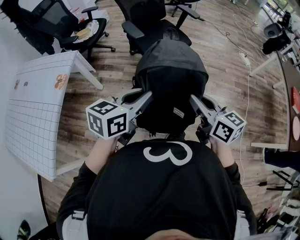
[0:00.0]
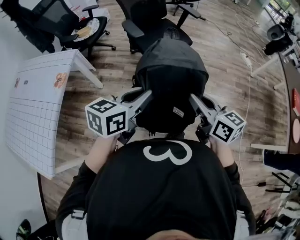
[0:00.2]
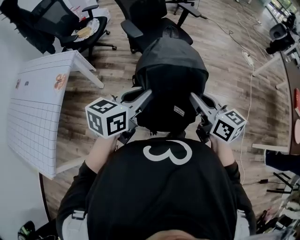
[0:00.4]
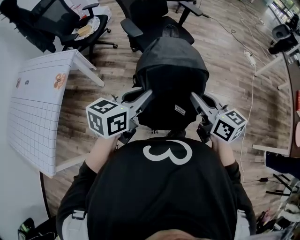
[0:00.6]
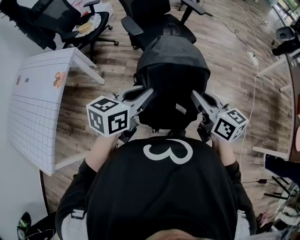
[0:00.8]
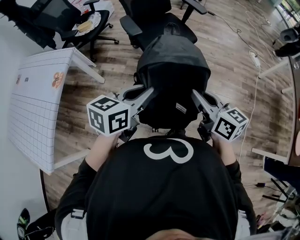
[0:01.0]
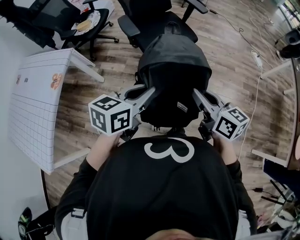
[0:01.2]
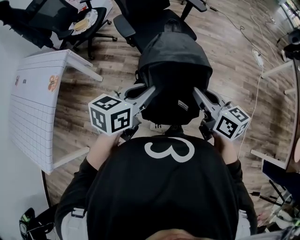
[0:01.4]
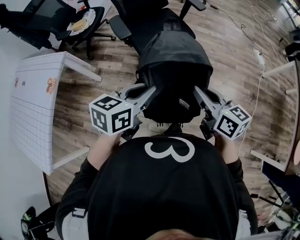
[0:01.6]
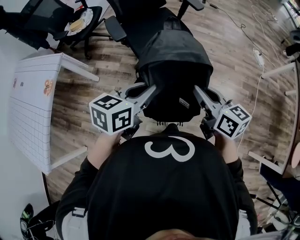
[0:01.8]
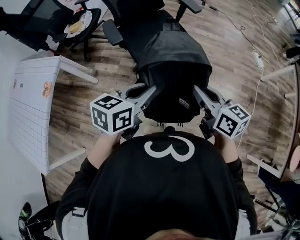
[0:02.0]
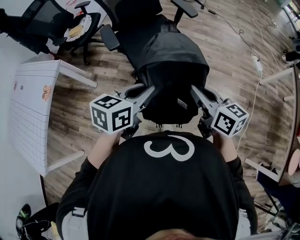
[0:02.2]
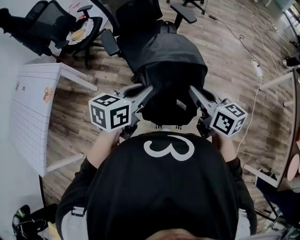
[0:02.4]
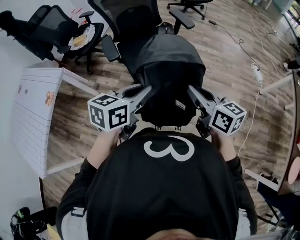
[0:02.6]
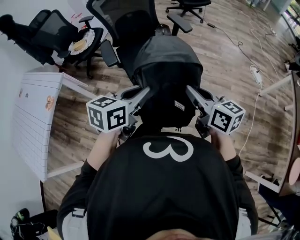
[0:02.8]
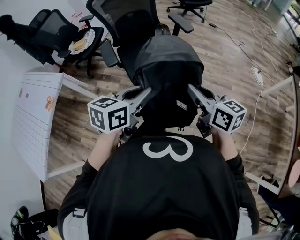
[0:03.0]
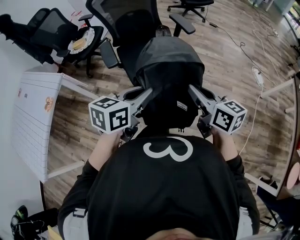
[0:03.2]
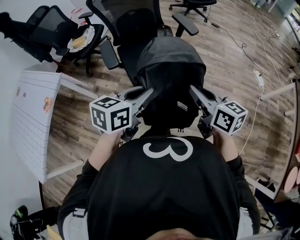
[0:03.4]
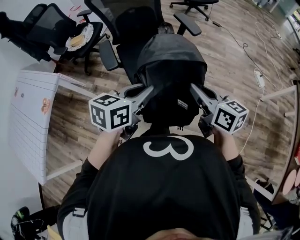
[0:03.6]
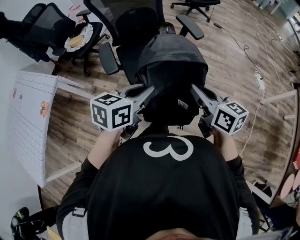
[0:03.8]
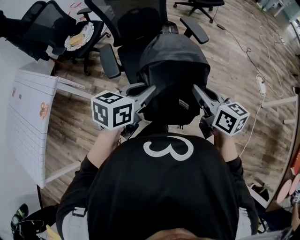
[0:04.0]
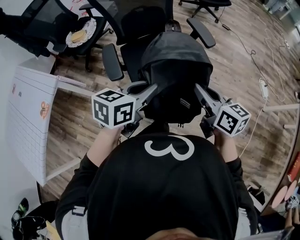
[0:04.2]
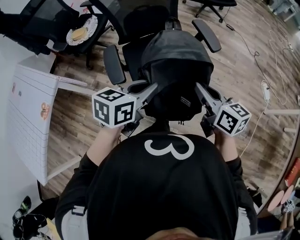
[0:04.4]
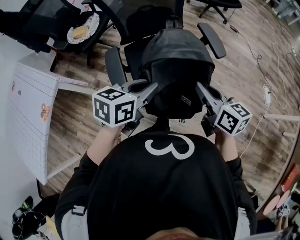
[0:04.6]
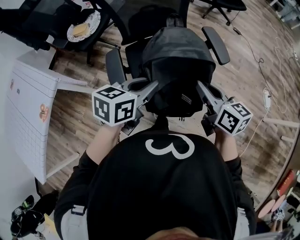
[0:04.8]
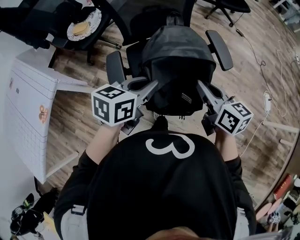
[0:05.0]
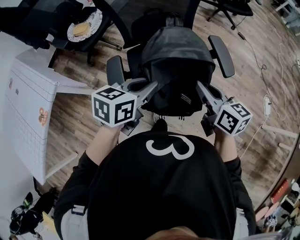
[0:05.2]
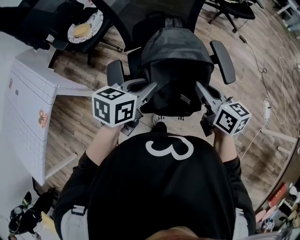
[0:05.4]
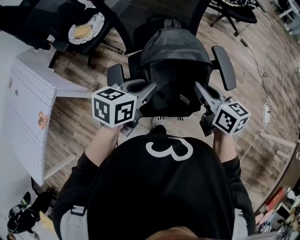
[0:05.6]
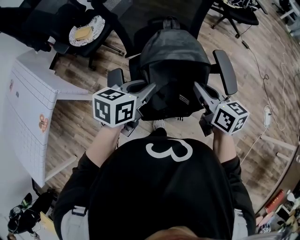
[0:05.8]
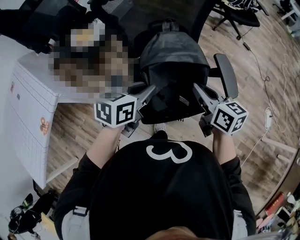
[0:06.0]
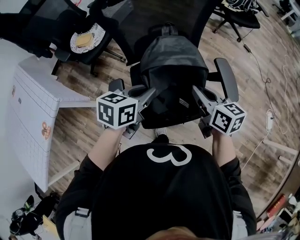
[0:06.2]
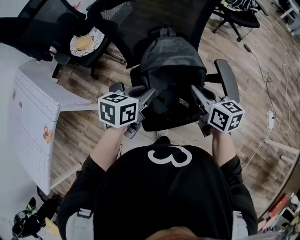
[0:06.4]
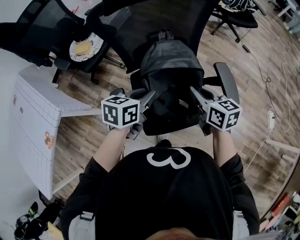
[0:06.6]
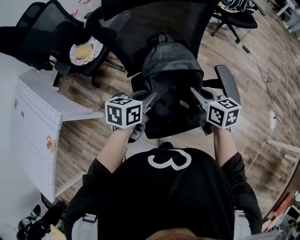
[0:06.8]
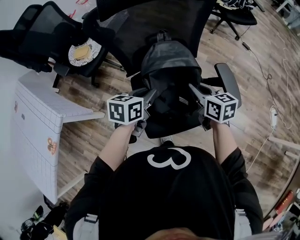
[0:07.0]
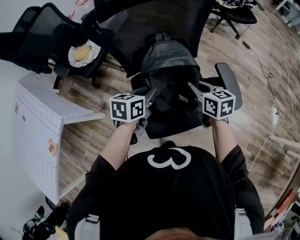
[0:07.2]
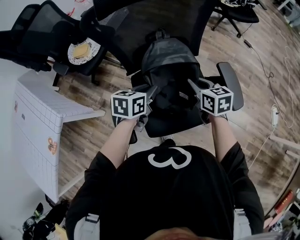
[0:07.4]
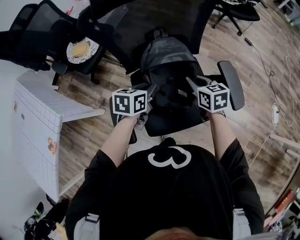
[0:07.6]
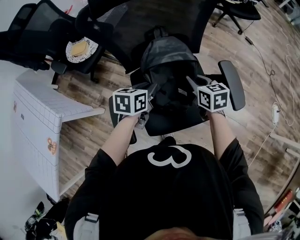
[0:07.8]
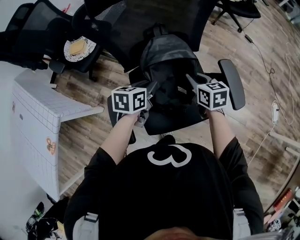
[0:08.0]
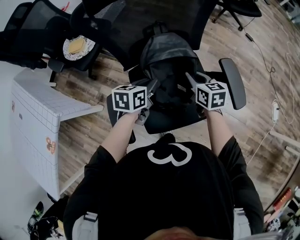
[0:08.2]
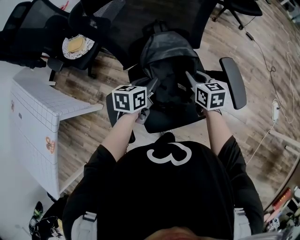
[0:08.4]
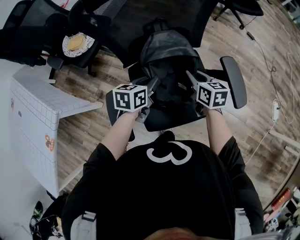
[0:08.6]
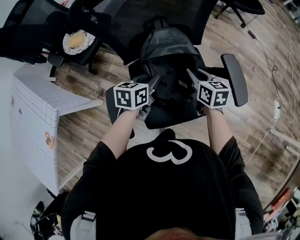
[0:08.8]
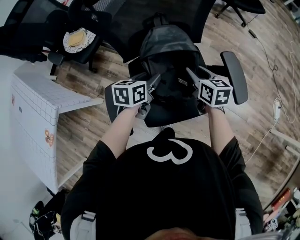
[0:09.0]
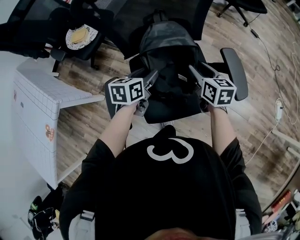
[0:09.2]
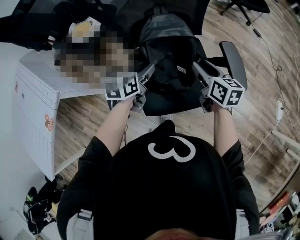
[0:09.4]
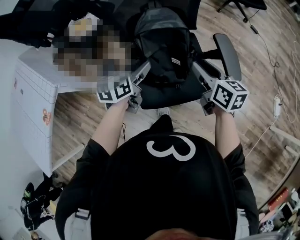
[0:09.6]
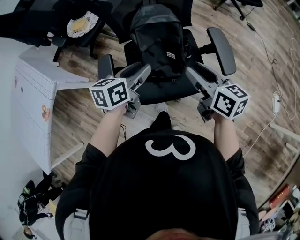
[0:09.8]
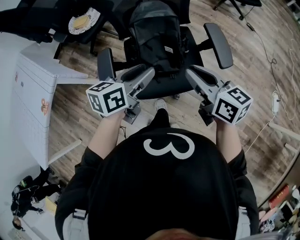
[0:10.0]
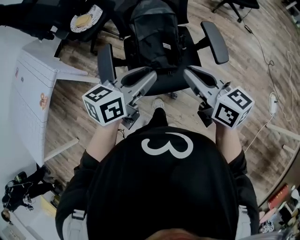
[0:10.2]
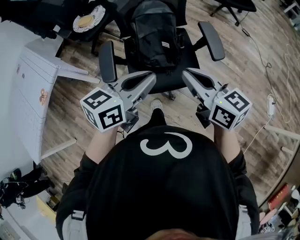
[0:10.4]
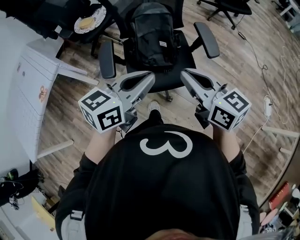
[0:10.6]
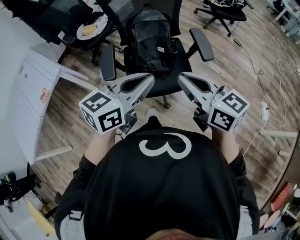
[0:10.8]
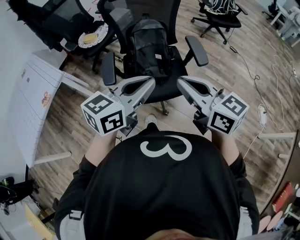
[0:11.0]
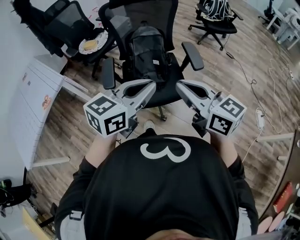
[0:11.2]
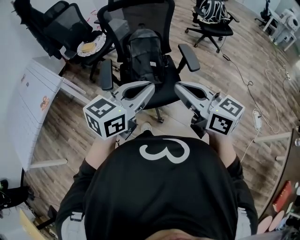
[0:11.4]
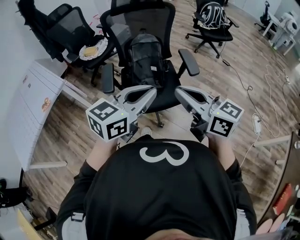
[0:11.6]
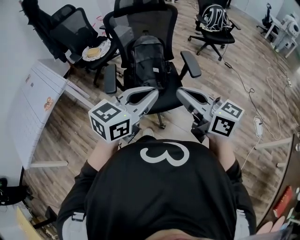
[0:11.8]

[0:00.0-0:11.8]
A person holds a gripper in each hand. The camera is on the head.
0:00.0 to 0:01.4: Both grippers travel together forward and to the right, about 15 cm.
0:01.4 to 0:03.0: Both grippers move forward and to the right, roughly 20 cm.
0:03.0 to 0:04.4: Both grippers travel together forward, approximately 25 cm.
0:04.4 to 0:06.0: Both grippers move forward, roughly 25 cm.
0:06.0 to 0:07.4: The two grippers go some 15 cm forward and downward.
0:07.4 to 0:08.8: The left gripper shifts roughly 5 cm downward. The right gripper shifts by approximately 5 cm.
0:08.8 to 0:10.4: Both grippers move backward and upward, approximately 35 cm. The right gripper changes its angle by some 30 degrees, and opens, then closes once more. Meanwhile the left gripper rotates approximately 20 degrees, and opens, then closes again.
0:10.4 to 0:11.8: The left gripper moves backward, upward and to the right, about 20 cm; the right gripper moves backward and upward, some 20 cm.

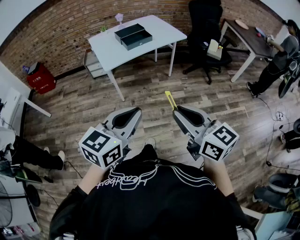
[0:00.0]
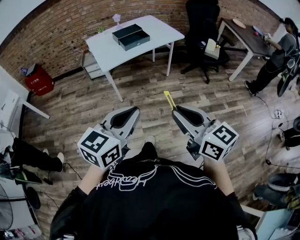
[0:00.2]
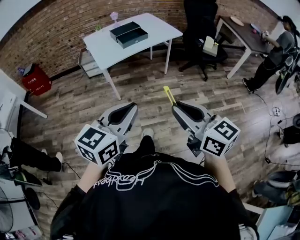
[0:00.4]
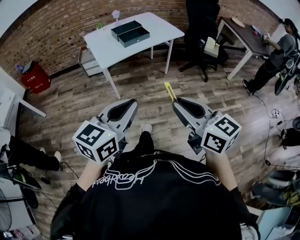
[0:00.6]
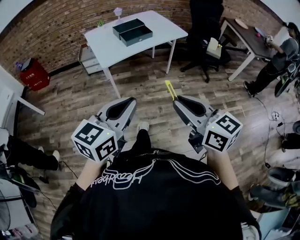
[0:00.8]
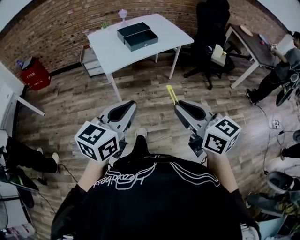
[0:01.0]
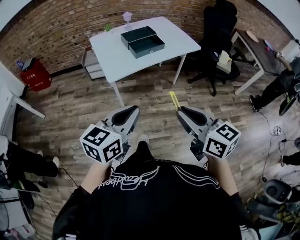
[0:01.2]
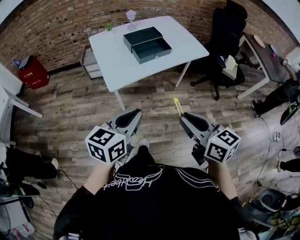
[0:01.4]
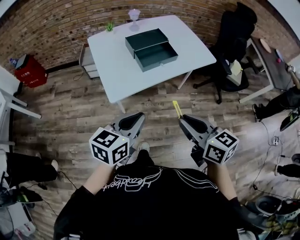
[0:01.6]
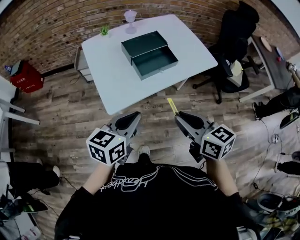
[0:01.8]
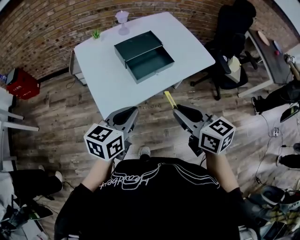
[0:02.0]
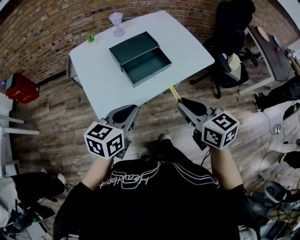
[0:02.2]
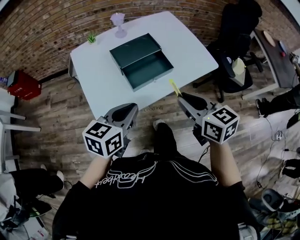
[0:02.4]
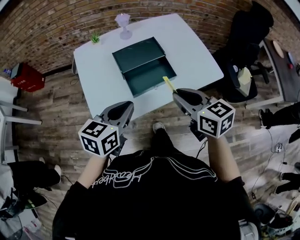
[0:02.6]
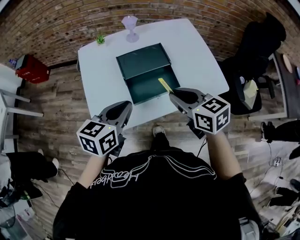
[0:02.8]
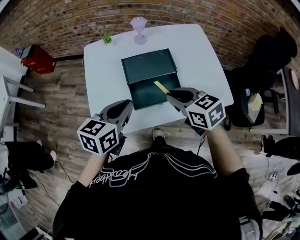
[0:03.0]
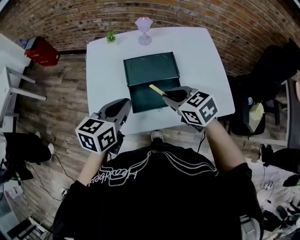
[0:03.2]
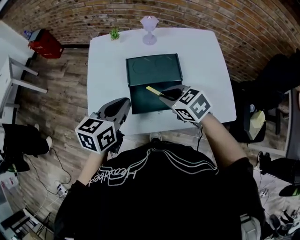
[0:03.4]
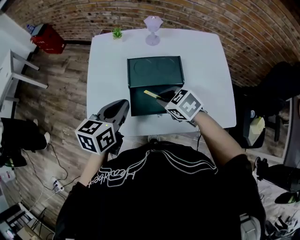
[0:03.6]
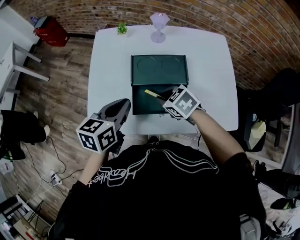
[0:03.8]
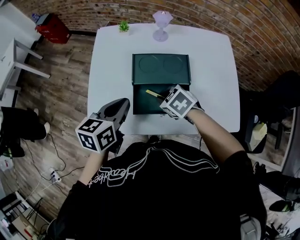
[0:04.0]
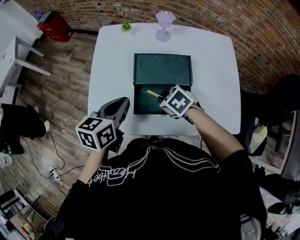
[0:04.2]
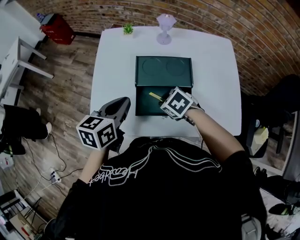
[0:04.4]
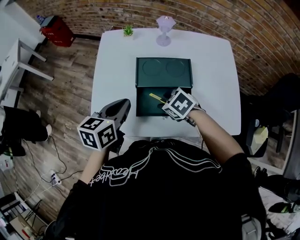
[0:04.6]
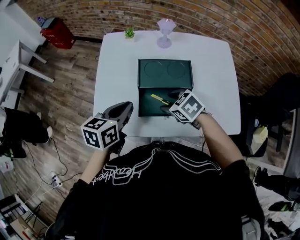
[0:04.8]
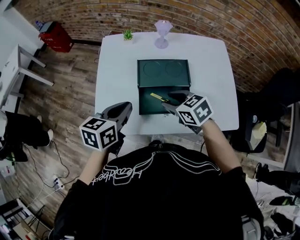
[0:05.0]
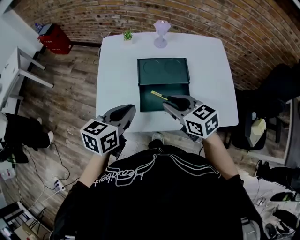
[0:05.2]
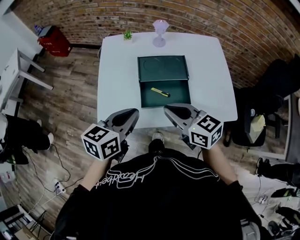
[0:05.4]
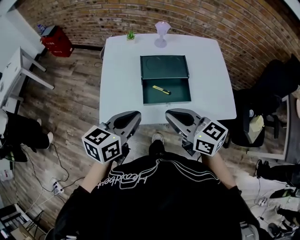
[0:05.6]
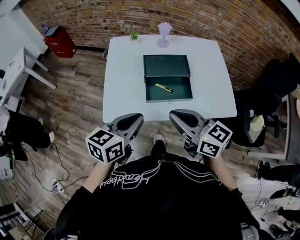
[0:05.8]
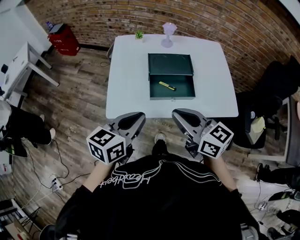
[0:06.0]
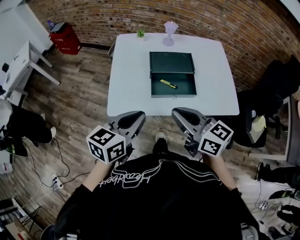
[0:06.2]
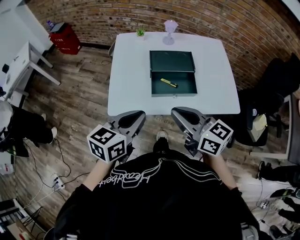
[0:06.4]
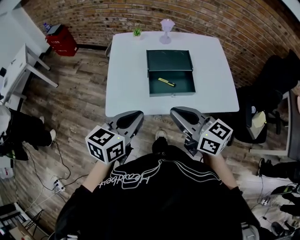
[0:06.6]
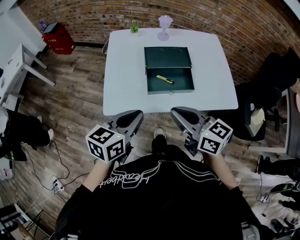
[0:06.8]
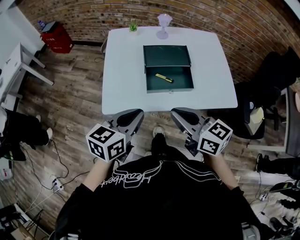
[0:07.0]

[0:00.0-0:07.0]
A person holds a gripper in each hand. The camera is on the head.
0:00.0 to 0:01.4: Both grippers travel together forward, some 25 cm.
0:01.4 to 0:02.8: Both grippers move forward, some 35 cm. The right gripper rotates roughly 20 degrees.
0:02.8 to 0:04.2: The left gripper shifts by approximately 10 cm, and swivels some 30 degrees; the right gripper moves downward, approximately 20 cm, and tips its fingers downward by roughly 30 degrees.
0:04.2 to 0:05.6: The left gripper heads backward and upward, covering some 15 cm, while the right gripper heads upward and backward, covering approximately 25 cm, angles its fingers upward, by some 50 degrees, and opens and closes again.
0:05.6 to 0:07.0: The left gripper moves some 5 cm; the right gripper heads backward, covering roughly 5 cm.

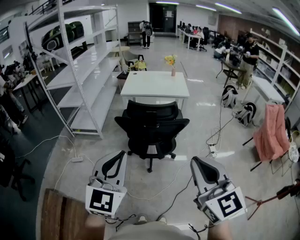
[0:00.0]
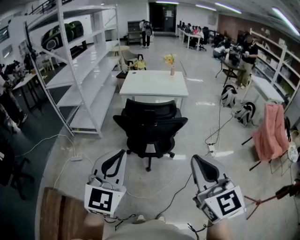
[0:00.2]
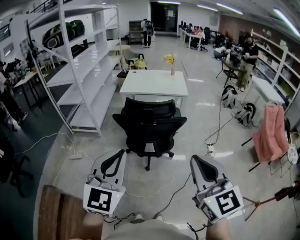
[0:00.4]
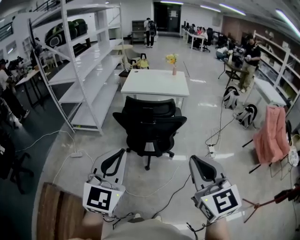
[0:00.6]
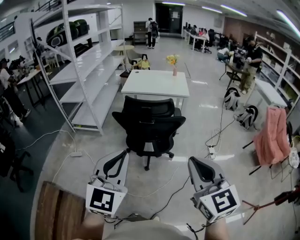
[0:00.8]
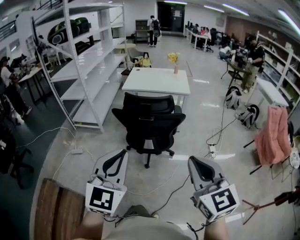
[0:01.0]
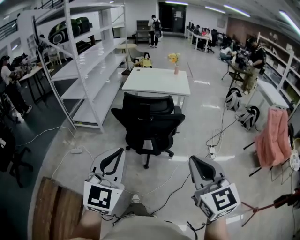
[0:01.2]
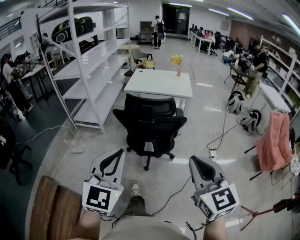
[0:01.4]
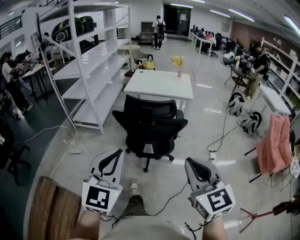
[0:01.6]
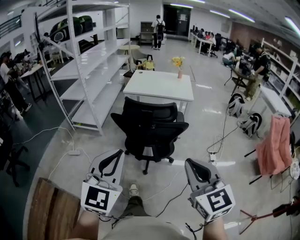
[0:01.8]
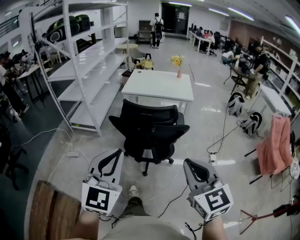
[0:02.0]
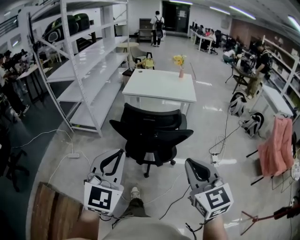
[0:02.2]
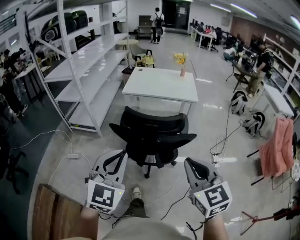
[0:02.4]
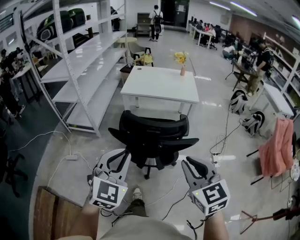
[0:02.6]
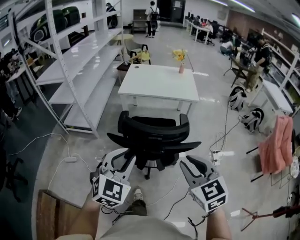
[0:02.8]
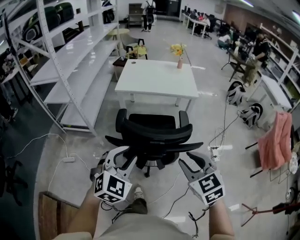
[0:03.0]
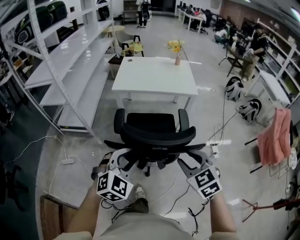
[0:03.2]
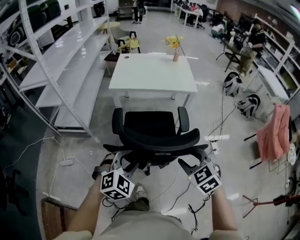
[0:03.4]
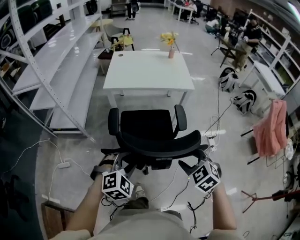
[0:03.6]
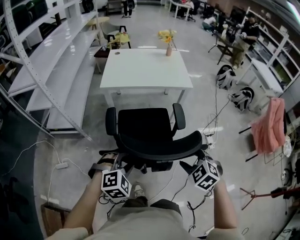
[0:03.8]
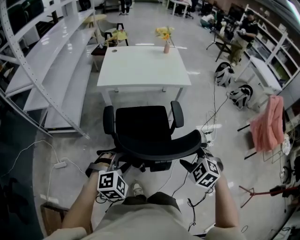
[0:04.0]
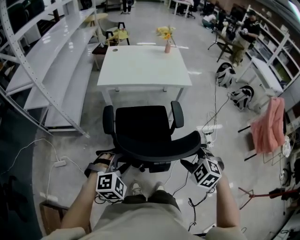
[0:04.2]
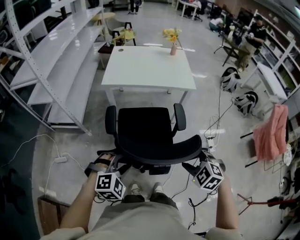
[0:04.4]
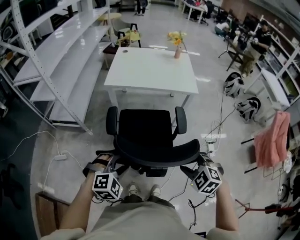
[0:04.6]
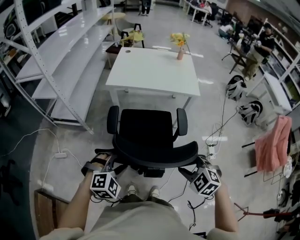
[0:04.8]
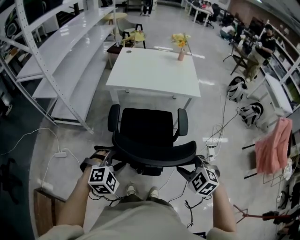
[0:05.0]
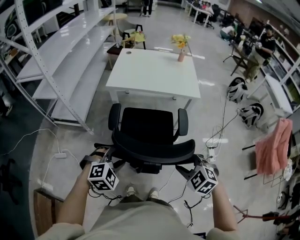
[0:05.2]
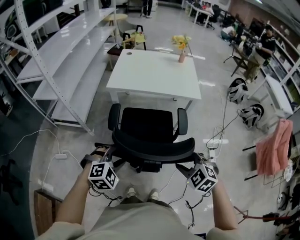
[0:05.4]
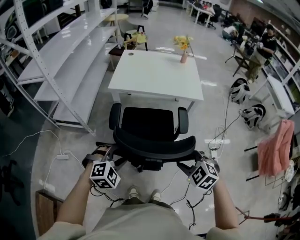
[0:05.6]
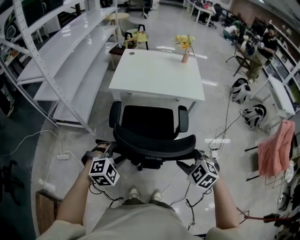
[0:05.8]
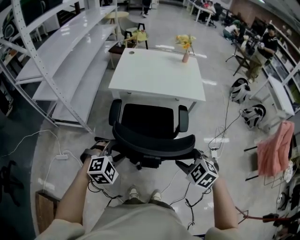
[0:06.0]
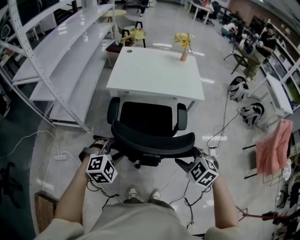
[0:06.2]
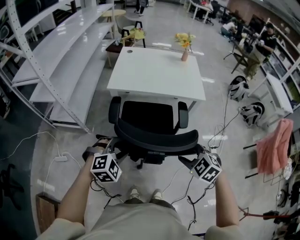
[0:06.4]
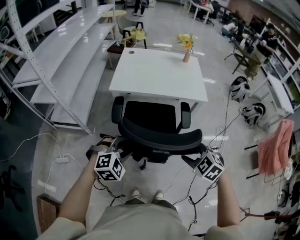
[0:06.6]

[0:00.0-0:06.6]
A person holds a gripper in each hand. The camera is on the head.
0:00.0 to 0:01.6: The right gripper moves downward and to the right, roughly 10 cm. The left gripper moves approximately 5 cm.
0:01.6 to 0:03.2: The grippers both shift forward and downward by roughly 35 cm. The left gripper swivels approximately 40 degrees, and opens its fingers. The right gripper turns by about 30 degrees, and opens up.
0:03.2 to 0:05.0: The two grippers go some 15 cm downward and forward. The left gripper turns by roughly 20 degrees; the right gripper rotates roughly 30 degrees.
0:05.0 to 0:06.6: The grippers both shift forward by some 15 cm.
